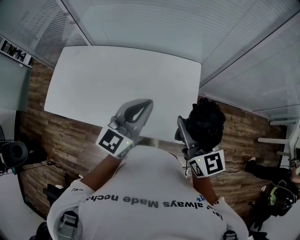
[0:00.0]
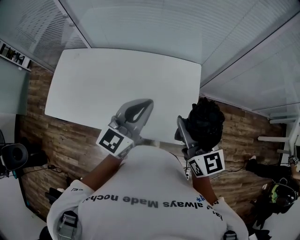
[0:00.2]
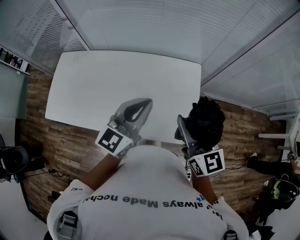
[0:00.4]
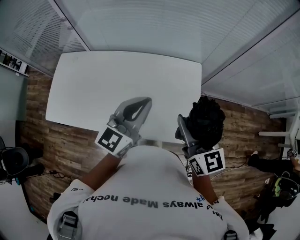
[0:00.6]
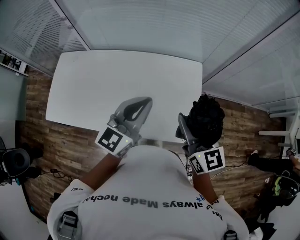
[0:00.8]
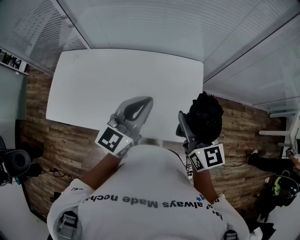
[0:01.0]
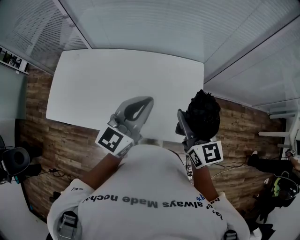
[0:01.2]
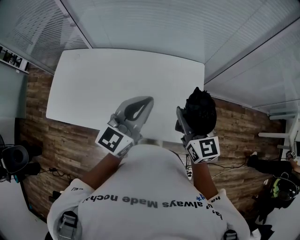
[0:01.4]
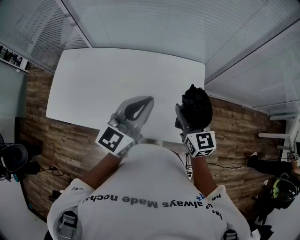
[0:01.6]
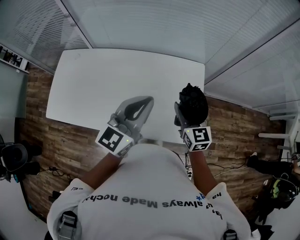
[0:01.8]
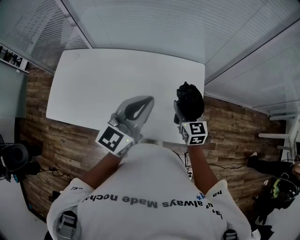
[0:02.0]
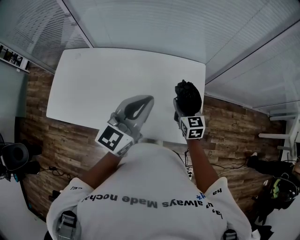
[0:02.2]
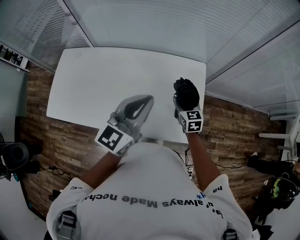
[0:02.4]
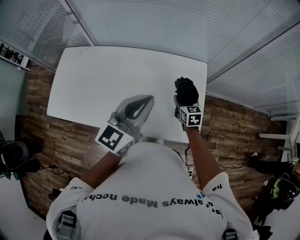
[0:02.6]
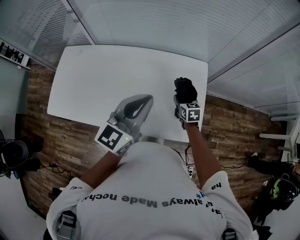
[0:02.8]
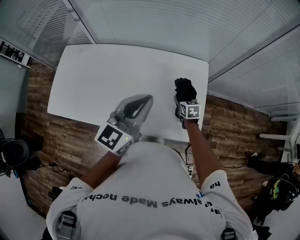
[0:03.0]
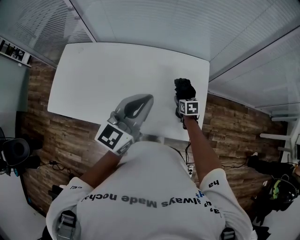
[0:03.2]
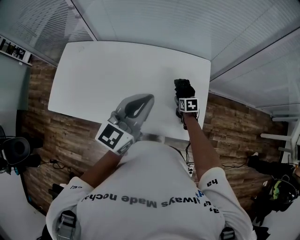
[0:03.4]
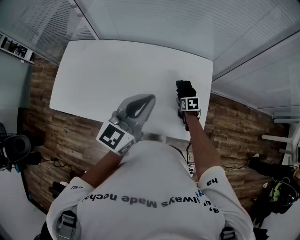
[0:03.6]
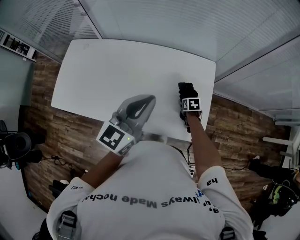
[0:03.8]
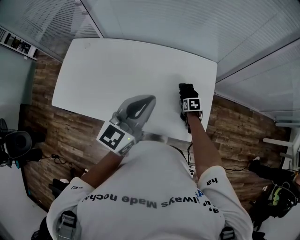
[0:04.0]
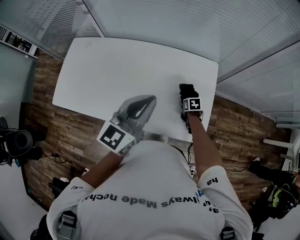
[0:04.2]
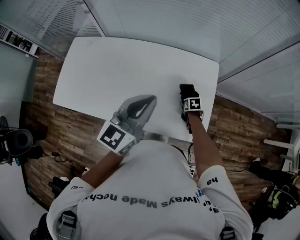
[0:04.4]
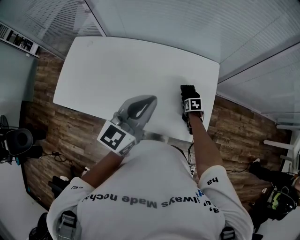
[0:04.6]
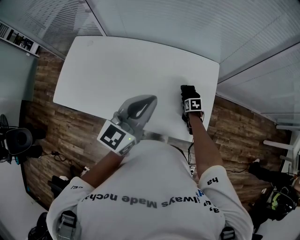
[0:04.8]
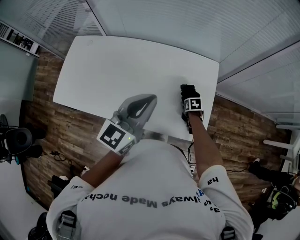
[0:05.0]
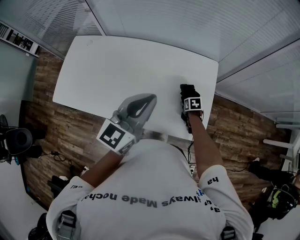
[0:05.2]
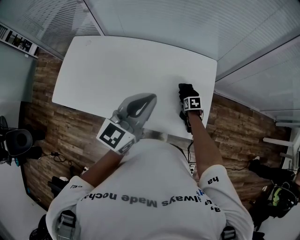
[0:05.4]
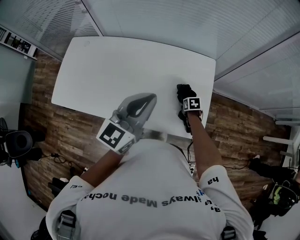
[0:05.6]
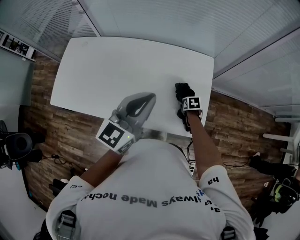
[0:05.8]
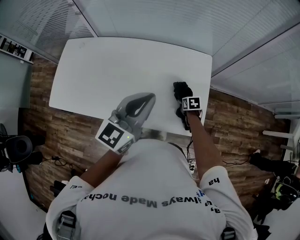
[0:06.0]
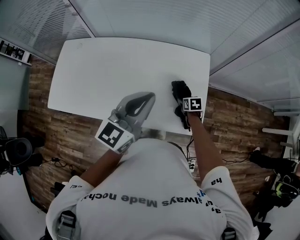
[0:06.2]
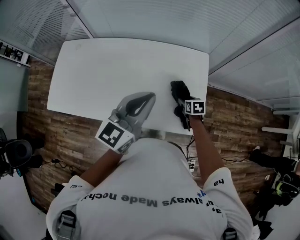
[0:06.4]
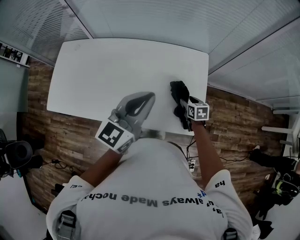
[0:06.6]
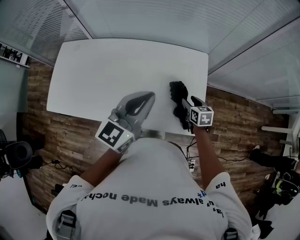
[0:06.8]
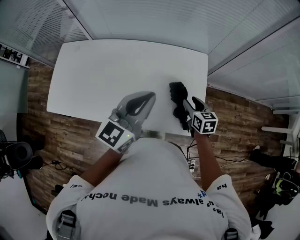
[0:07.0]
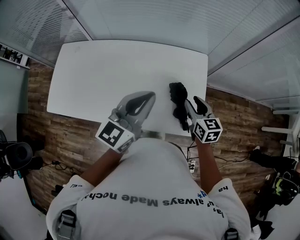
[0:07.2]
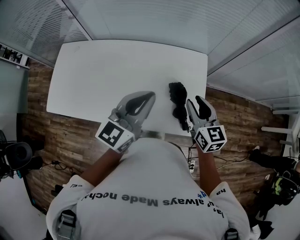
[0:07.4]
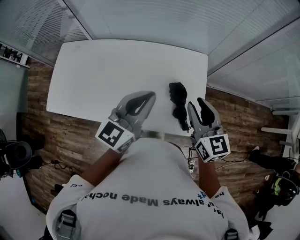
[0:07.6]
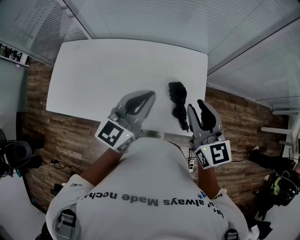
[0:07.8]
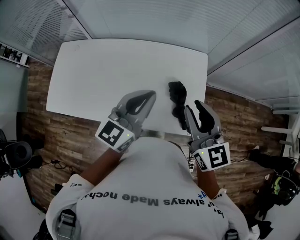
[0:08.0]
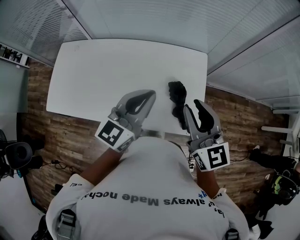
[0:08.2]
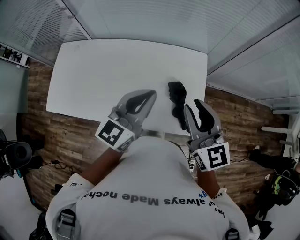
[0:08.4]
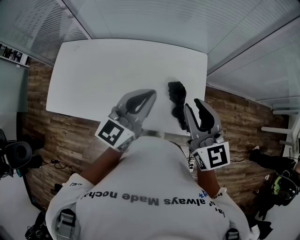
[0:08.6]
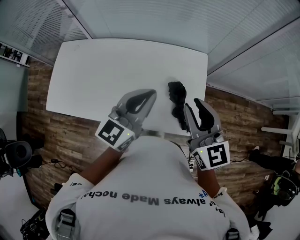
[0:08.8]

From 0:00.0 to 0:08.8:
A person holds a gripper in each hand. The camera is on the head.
From 0:00.0 to 0:01.4: The two grippers go approximately 5 cm to the left.
From 0:01.4 to 0:03.0: The right gripper is displaced downward by approximately 30 cm, and tilts its fingers roughly 40 degrees downward.
From 0:03.0 to 0:04.4: The right gripper travels downward by about 10 cm, and rotates roughly 20 degrees.
From 0:04.4 to 0:05.8: The grippers move only a little.
From 0:05.8 to 0:07.4: The right gripper is displaced upward by approximately 30 cm, tips its fingers upward by some 50 degrees, and closes its fingers.
From 0:07.4 to 0:08.8: The right gripper is displaced upward by about 10 cm.

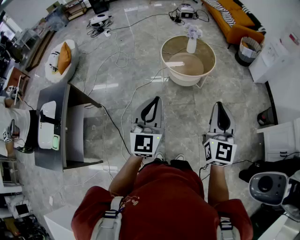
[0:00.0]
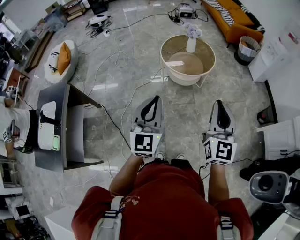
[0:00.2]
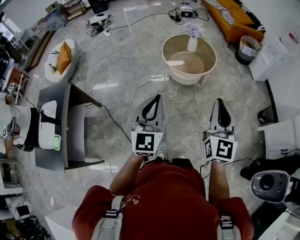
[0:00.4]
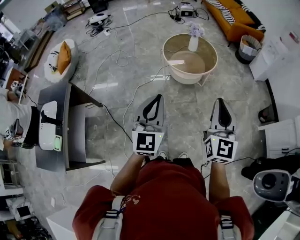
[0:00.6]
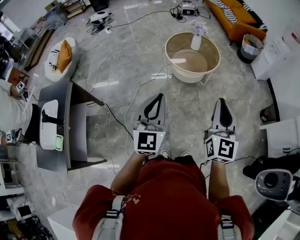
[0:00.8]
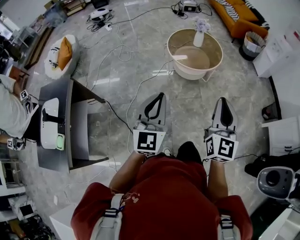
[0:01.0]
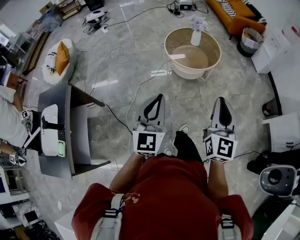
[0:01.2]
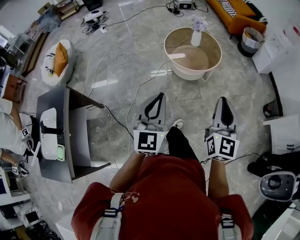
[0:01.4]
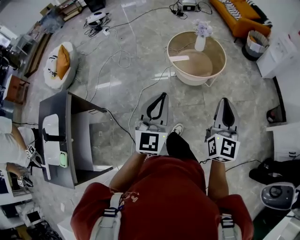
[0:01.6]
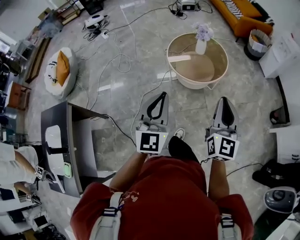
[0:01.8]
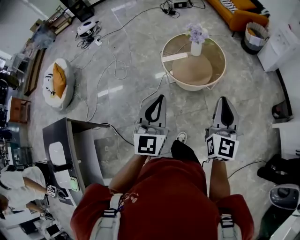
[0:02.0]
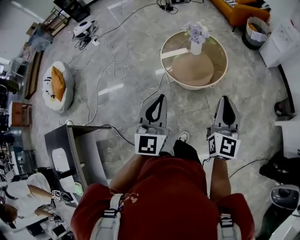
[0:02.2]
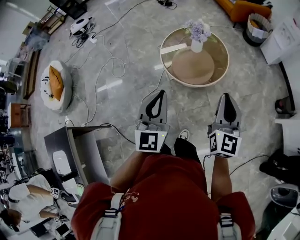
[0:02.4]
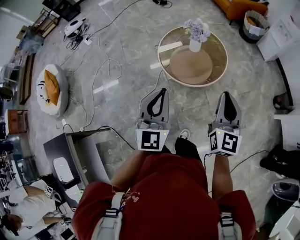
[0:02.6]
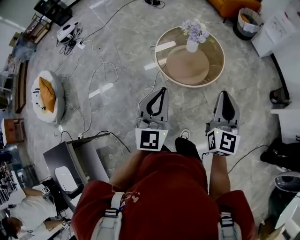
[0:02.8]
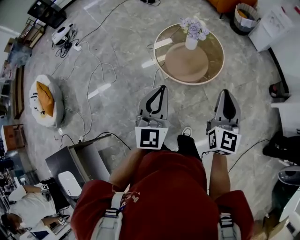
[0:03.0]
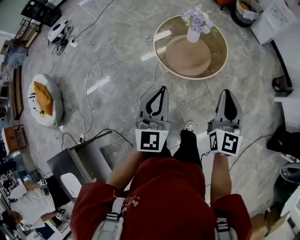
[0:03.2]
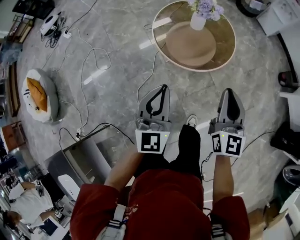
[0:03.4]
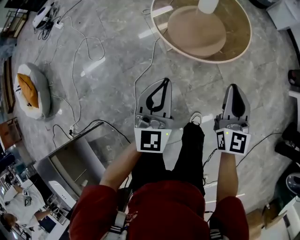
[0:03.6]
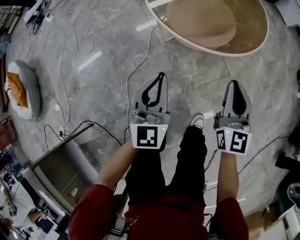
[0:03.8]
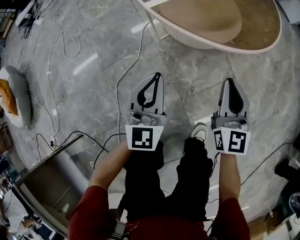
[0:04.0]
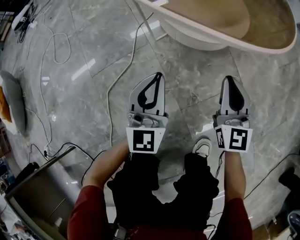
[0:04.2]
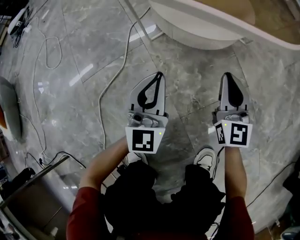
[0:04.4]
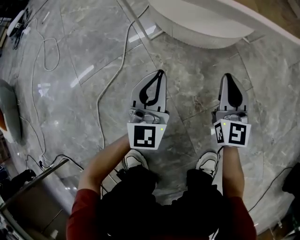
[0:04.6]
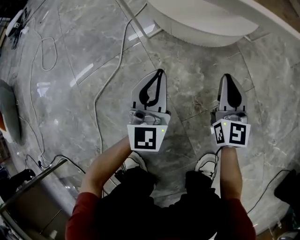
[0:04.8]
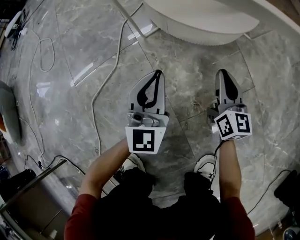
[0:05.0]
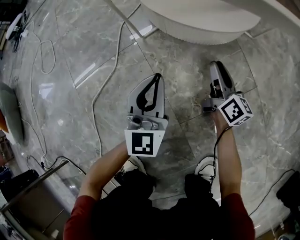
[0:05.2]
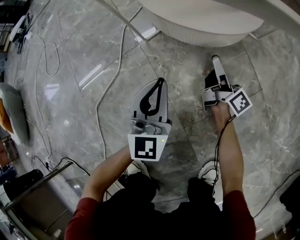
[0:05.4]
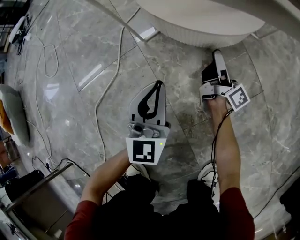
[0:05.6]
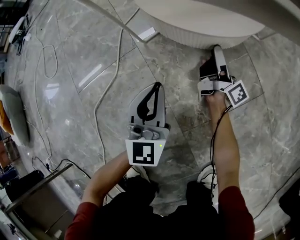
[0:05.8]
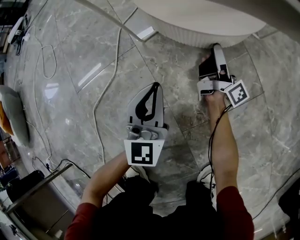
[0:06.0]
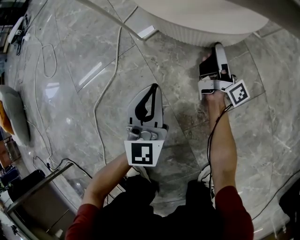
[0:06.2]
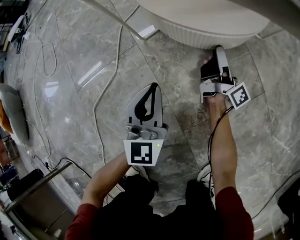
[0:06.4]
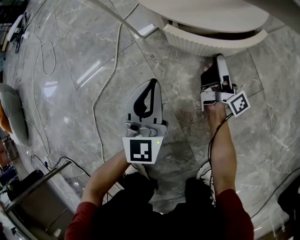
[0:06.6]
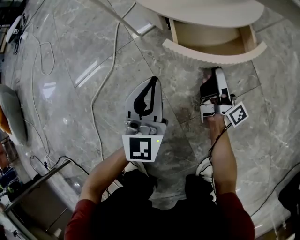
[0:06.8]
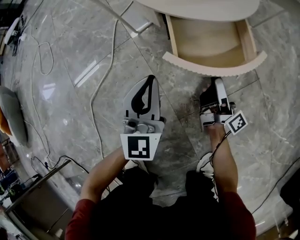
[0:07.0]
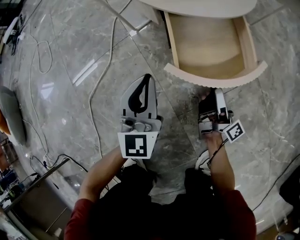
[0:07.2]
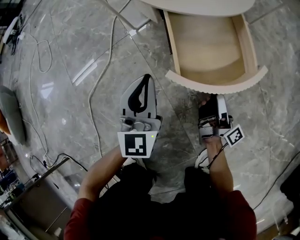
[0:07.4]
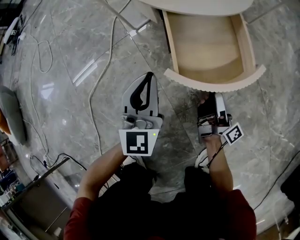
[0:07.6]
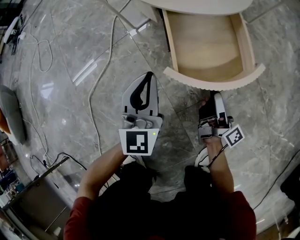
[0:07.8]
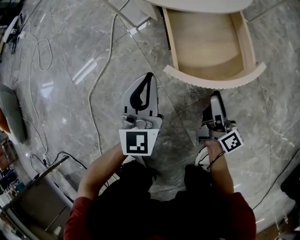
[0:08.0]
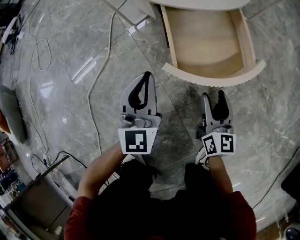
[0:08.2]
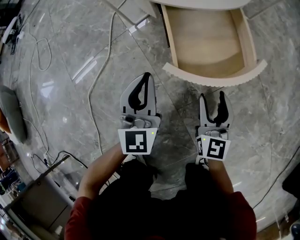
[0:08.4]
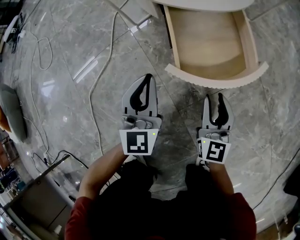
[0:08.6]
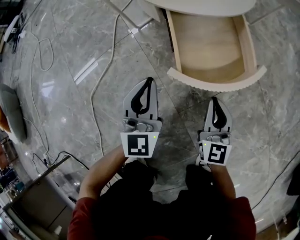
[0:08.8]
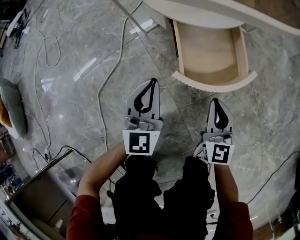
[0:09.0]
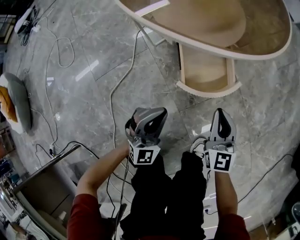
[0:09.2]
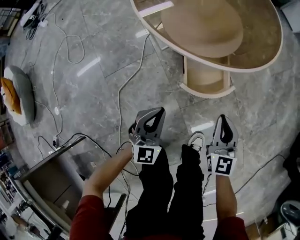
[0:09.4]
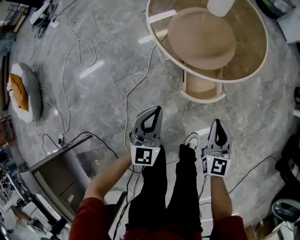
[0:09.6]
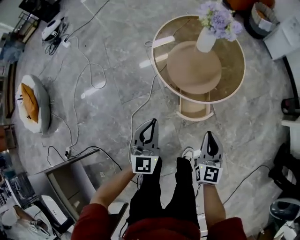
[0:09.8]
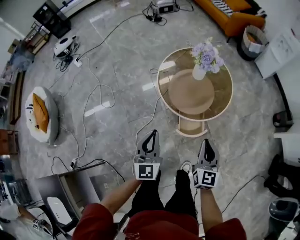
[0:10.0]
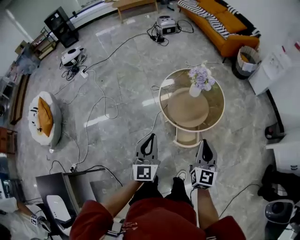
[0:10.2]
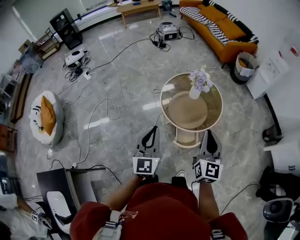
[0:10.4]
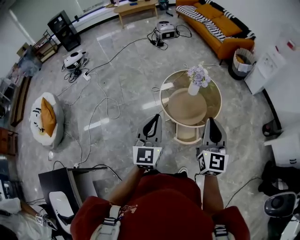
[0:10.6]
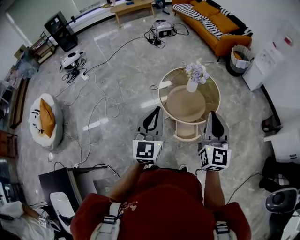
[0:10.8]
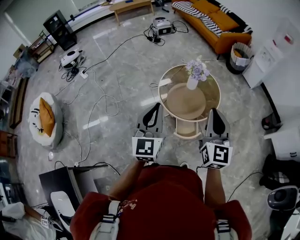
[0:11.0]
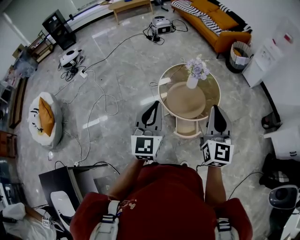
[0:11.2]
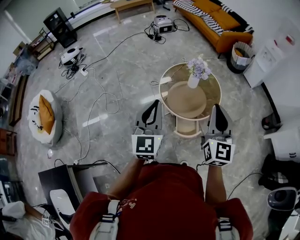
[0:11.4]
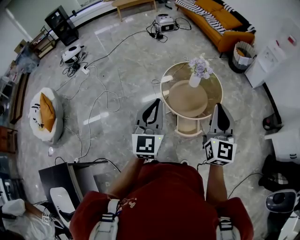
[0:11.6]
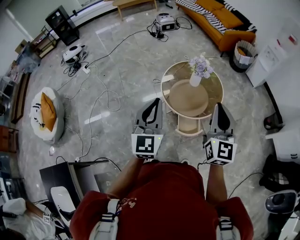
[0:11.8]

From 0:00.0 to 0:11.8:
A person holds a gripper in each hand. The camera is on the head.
From 0:00.0 to 0:01.4: The right gripper shifts roughly 5 cm to the left. Meanwhile the left gripper goes about 10 cm to the left and forward.
From 0:01.4 to 0:03.0: The right gripper moves forward and to the left, about 30 cm; the left gripper moves forward, some 35 cm.
From 0:03.0 to 0:04.4: Both grippers move downward, roughly 70 cm.
From 0:04.4 to 0:06.0: The left gripper travels downward by some 10 cm. The right gripper goes approximately 20 cm downward and forward, twists approximately 80 degrees clockwise, seen from behind, and opens up.
From 0:06.0 to 0:07.4: The right gripper travels backward by approximately 20 cm.
From 0:07.4 to 0:08.8: The right gripper ends up about 5 cm from where it was, twists approximately 90 degrees counterclockwise, seen from behind, and closes.
From 0:08.8 to 0:10.4: Both grippers move upward, some 80 cm.
From 0:10.4 to 0:11.8: Both grippers move upward, roughly 5 cm.

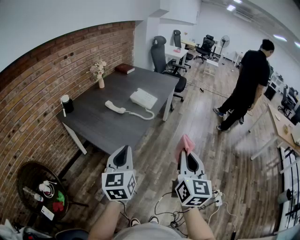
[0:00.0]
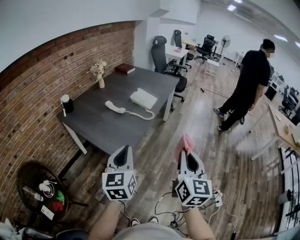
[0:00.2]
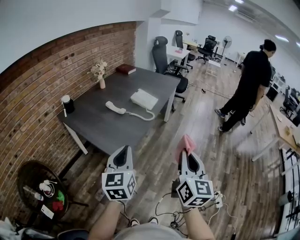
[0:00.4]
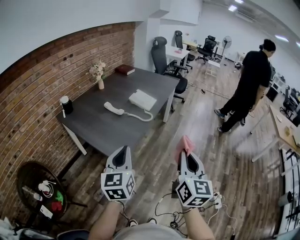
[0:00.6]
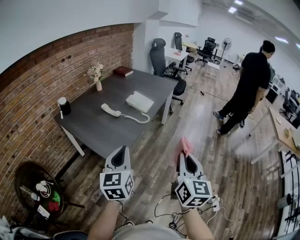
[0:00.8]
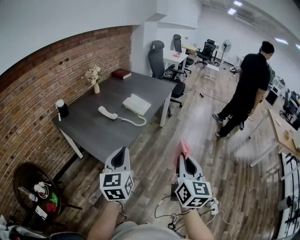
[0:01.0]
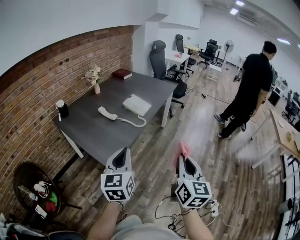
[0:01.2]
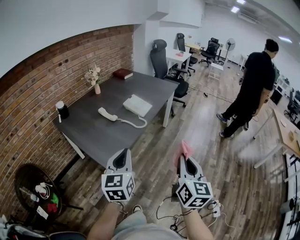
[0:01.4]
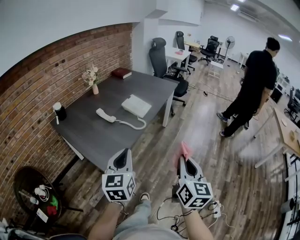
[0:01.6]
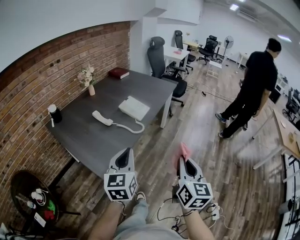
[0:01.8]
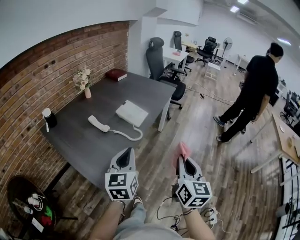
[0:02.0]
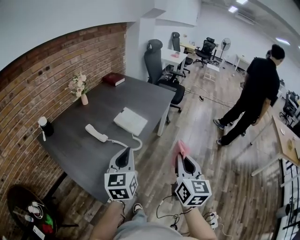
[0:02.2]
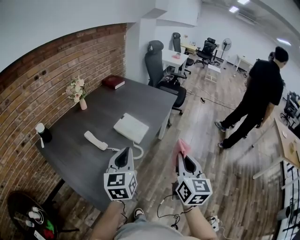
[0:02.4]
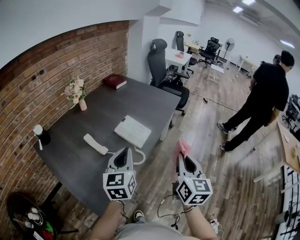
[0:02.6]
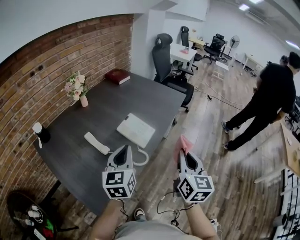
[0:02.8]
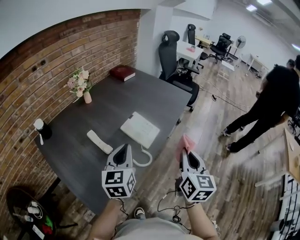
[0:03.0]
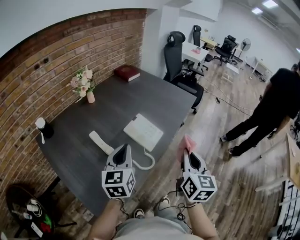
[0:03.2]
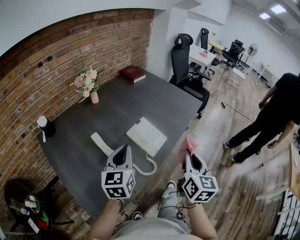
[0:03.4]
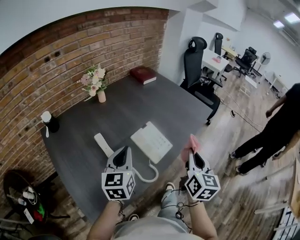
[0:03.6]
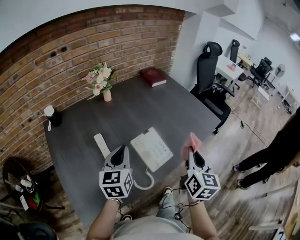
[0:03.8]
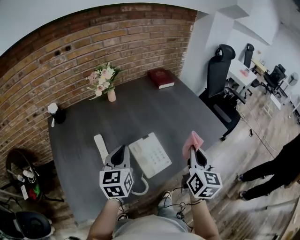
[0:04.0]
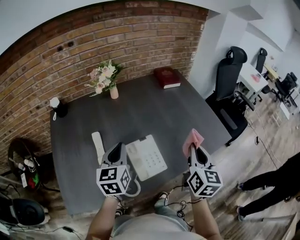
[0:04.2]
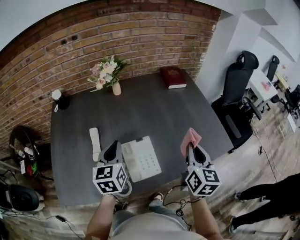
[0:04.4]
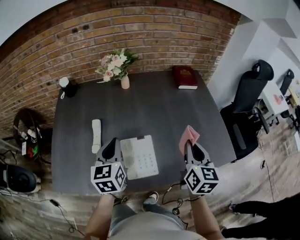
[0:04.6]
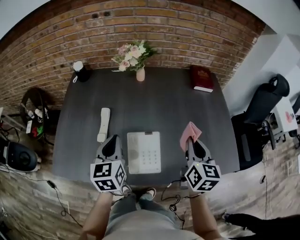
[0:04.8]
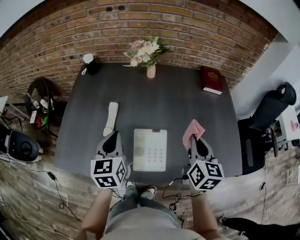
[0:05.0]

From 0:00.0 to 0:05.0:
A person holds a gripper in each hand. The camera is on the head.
From 0:00.0 to 0:01.6: Both grippers move to the right and forward, some 15 cm.
From 0:01.6 to 0:03.4: The two grippers travel together, forward, some 40 cm.
From 0:03.4 to 0:05.0: The left gripper moves some 10 cm, and turns by some 60 degrees. The right gripper shifts by roughly 35 cm, and turns by approximately 50 degrees.
